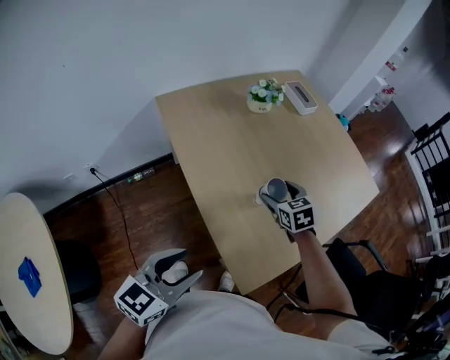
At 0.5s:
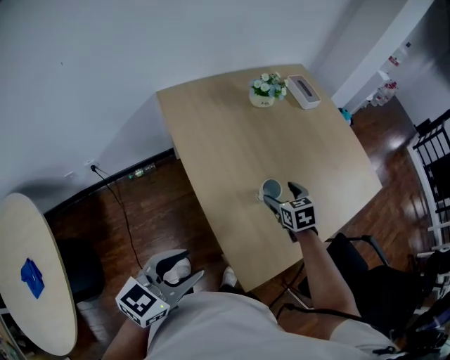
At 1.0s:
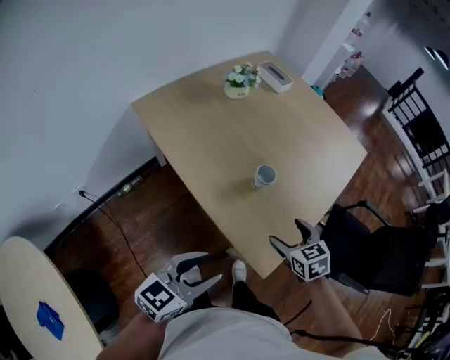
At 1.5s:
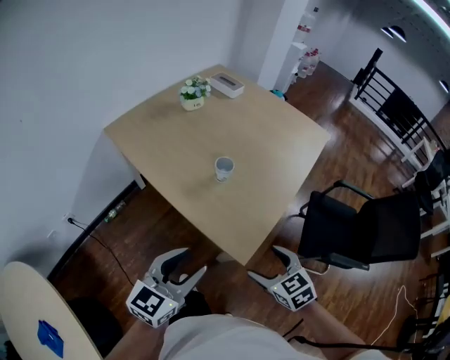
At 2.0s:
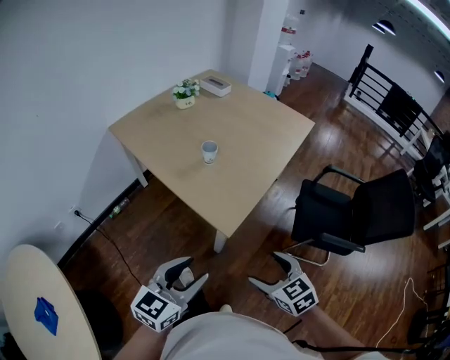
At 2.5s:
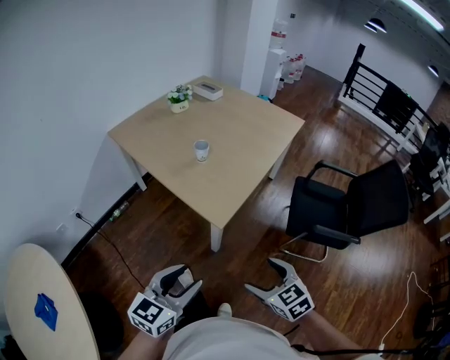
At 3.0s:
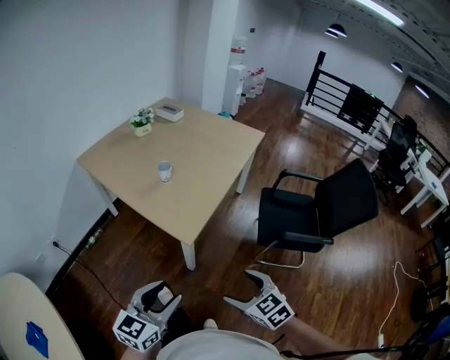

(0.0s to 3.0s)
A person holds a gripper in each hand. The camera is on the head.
0.0s - 1.5s: The left gripper shifts roughly 5 cm backward. The right gripper travels backward by about 35 cm.
1.5s - 3.0s: The grippers both shift backward and to the right by roughly 25 cm.

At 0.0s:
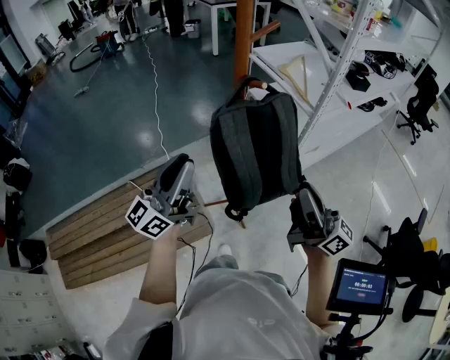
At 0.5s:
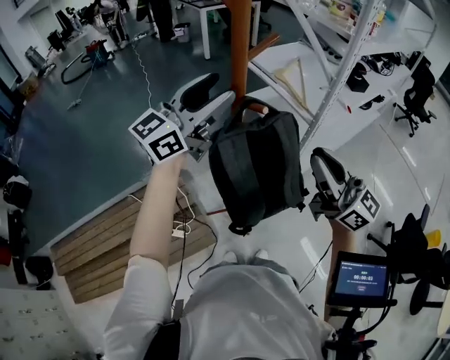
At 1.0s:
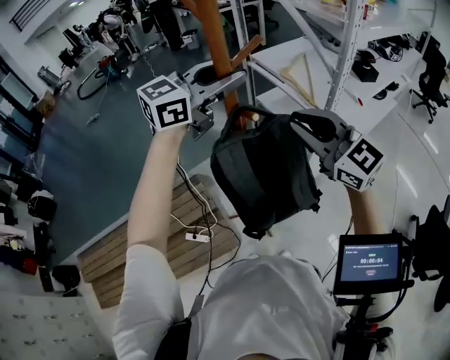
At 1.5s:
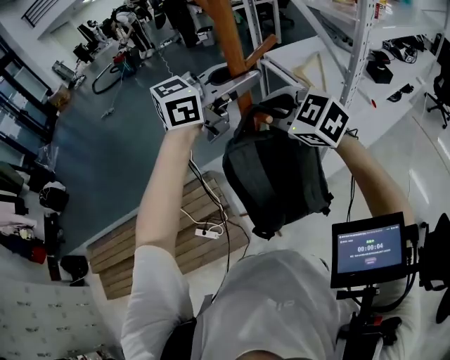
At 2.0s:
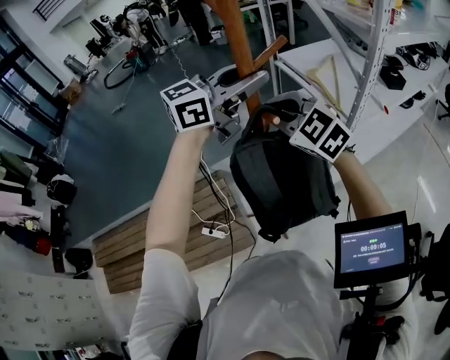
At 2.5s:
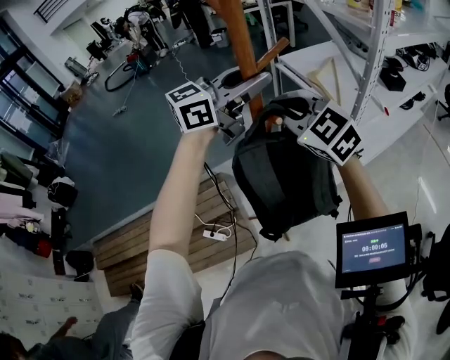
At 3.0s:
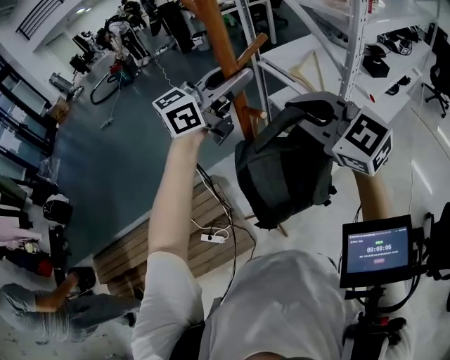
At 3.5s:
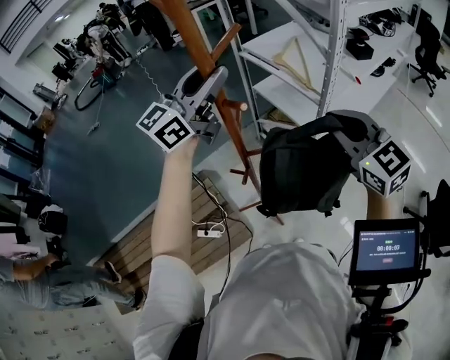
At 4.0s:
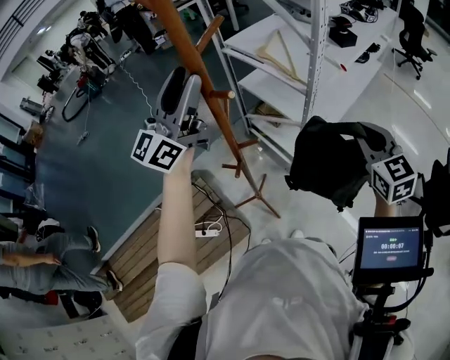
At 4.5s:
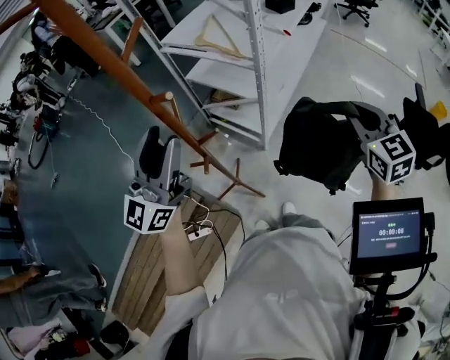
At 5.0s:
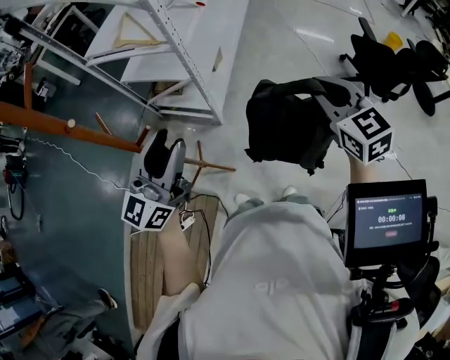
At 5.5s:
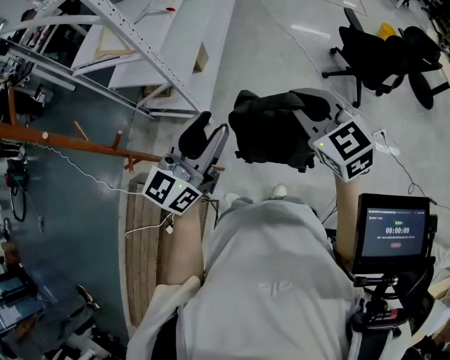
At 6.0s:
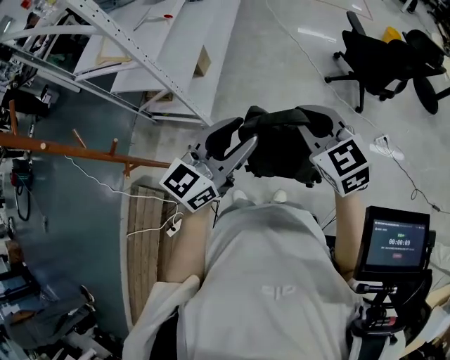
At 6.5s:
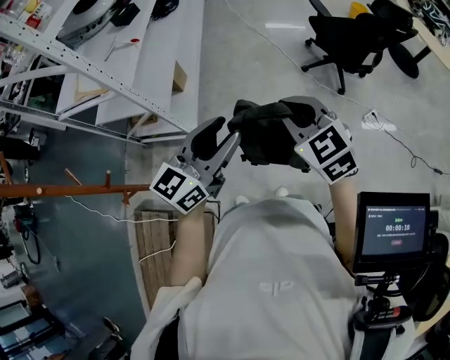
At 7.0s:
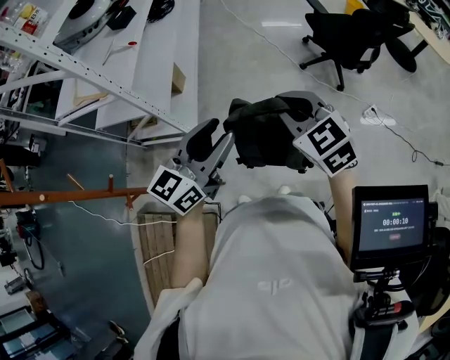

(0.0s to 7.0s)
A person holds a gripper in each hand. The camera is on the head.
0.0s - 2.0s: The left gripper travels forward, upward and to the right by about 30 cm, turns by some 30 degrees, and opens and closes again. The right gripper heads forward and to the left, covering approximately 30 cm, and tips its fingers downward by about 50 degrees.
2.0s - 3.5s: The right gripper heads to the right and backward, covering approximately 20 cm, and swivels approximately 30 degrees.
3.5s - 5.0s: The right gripper changes place by approximately 30 cm, and turns by approximately 50 degrees. The left gripper shifts by about 25 cm, and rotates about 20 degrees.
5.0s - 7.0s: The right gripper goes approximately 15 cm to the right, while the left gripper is displaced to the right by about 30 cm, and turns by about 30 degrees.

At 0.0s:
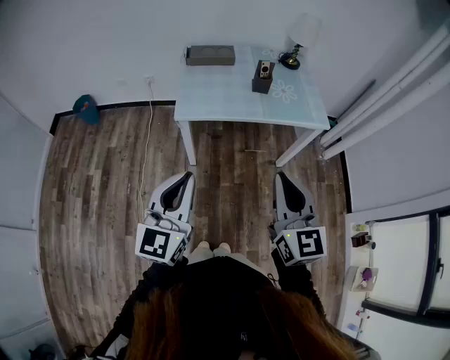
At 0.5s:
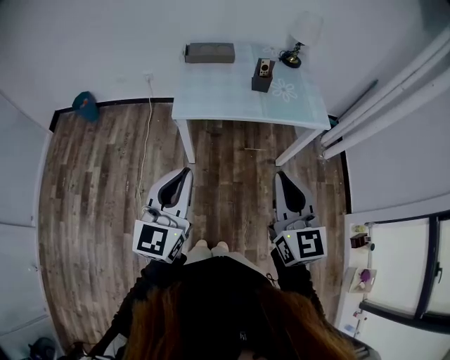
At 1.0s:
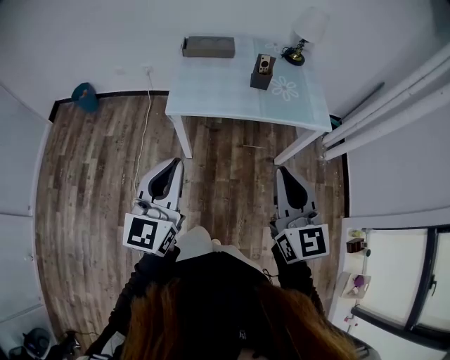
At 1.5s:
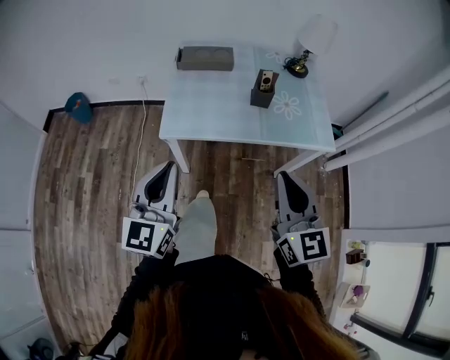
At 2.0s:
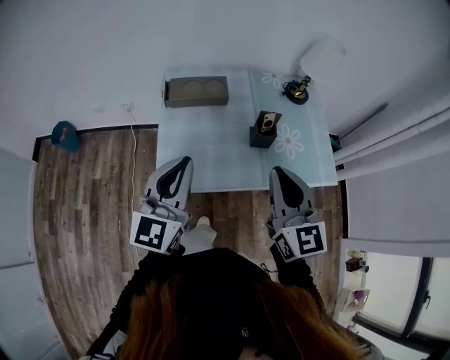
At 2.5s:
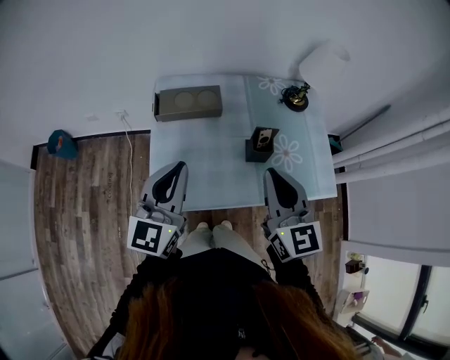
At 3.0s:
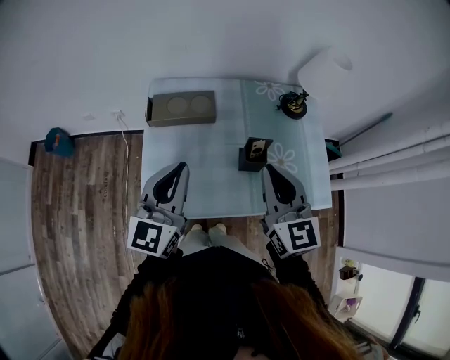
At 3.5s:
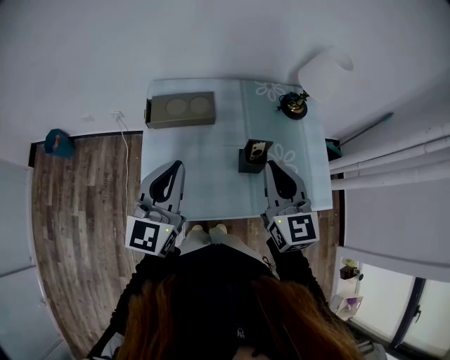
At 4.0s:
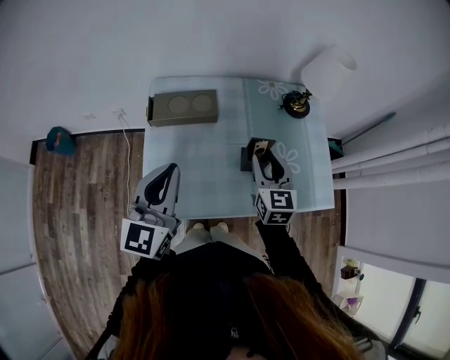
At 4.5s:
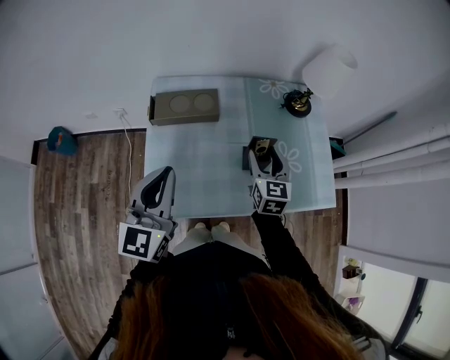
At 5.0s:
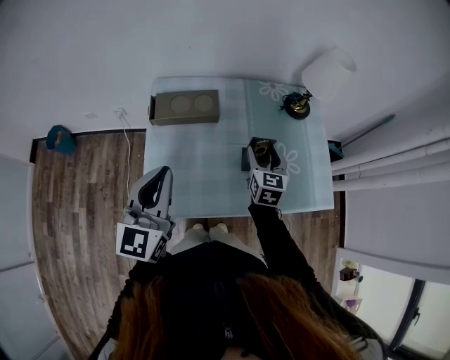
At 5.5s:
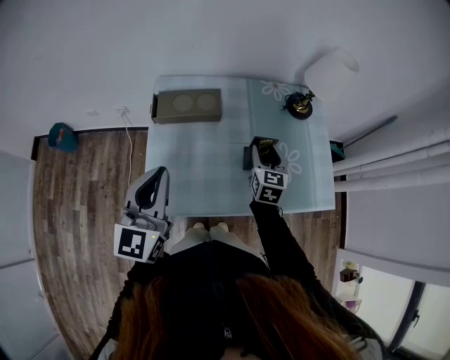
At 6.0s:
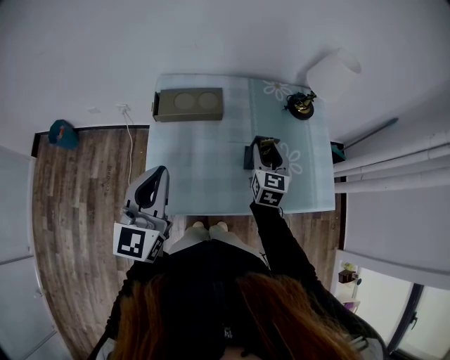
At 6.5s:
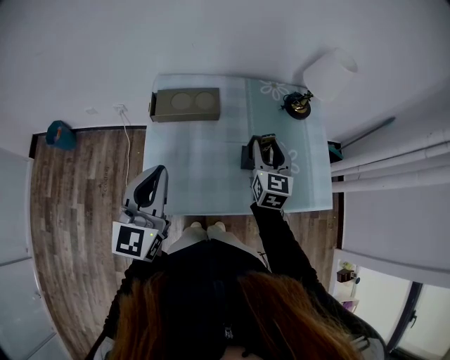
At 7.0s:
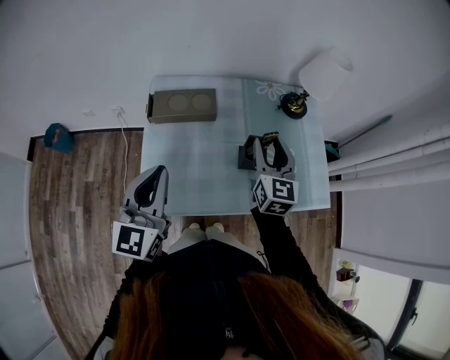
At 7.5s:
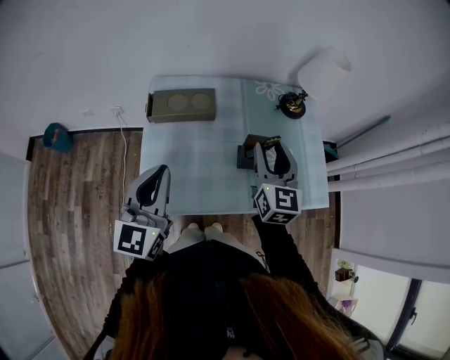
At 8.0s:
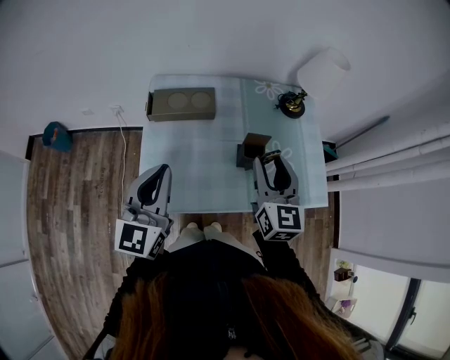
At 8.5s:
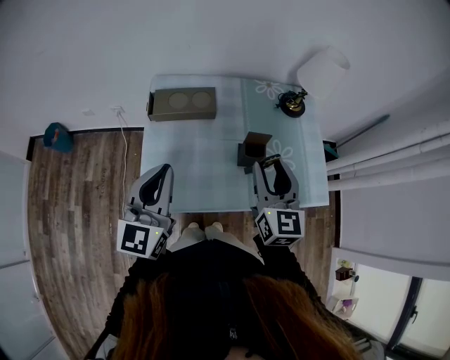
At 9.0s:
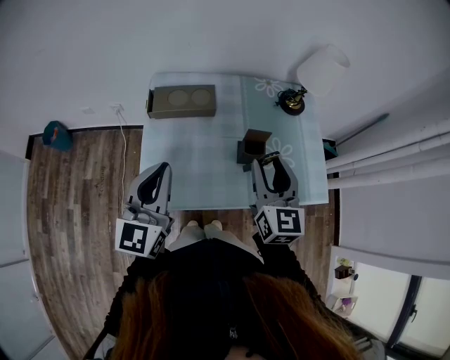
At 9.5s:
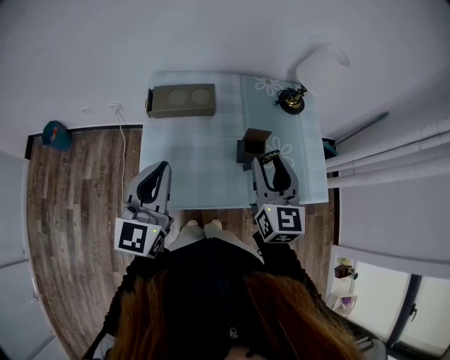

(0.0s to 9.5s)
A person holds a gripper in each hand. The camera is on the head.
0.0s - 2.0s: Both grippers move forward, some 35 cm.
2.0s - 4.0s: The right gripper shifts about 25 cm forward and downward, and opens its fingers; the left gripper goes roughly 10 cm forward.
4.0s - 5.5s: The right gripper goes some 5 cm downward.
5.5s - 7.5s: The right gripper heads upward, covering some 15 cm.
7.5s - 9.5s: The right gripper travels backward by about 5 cm.

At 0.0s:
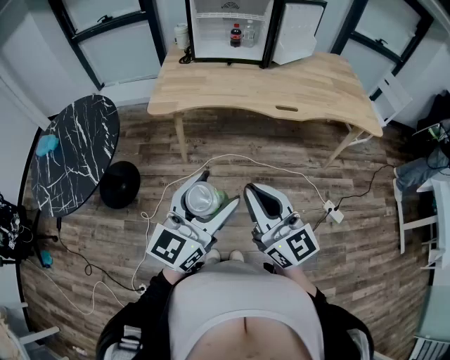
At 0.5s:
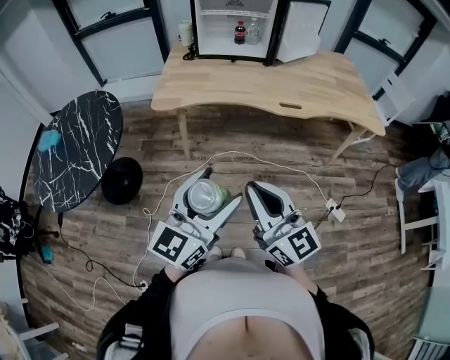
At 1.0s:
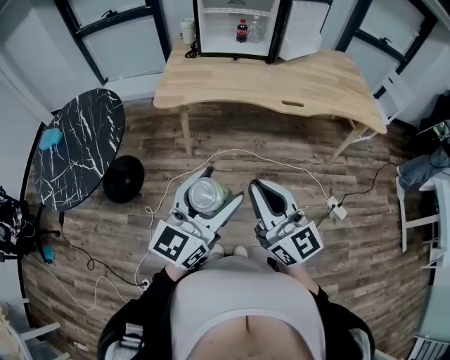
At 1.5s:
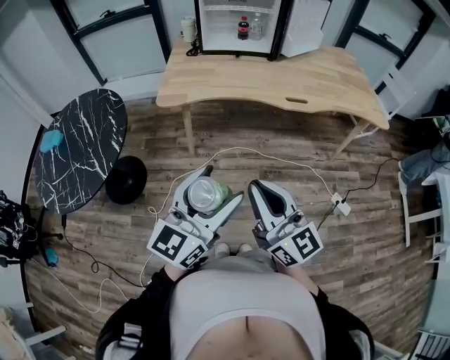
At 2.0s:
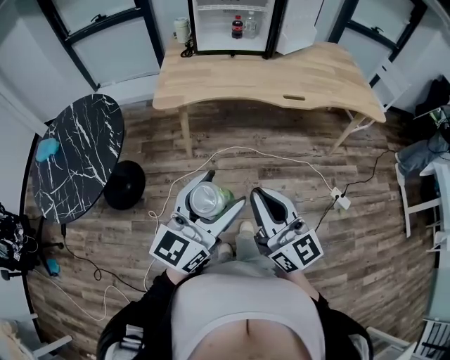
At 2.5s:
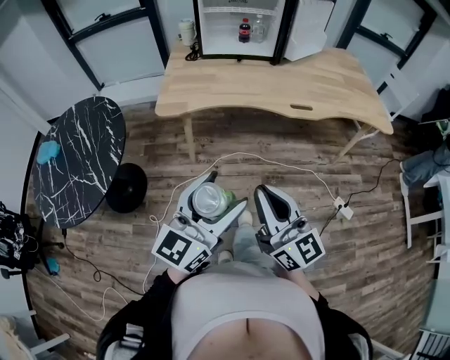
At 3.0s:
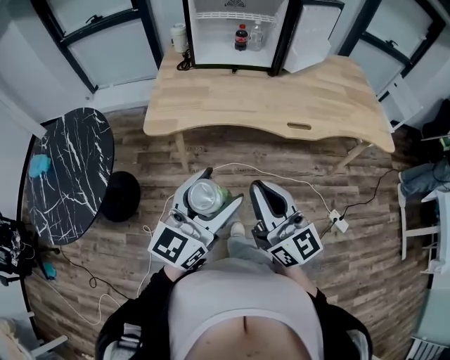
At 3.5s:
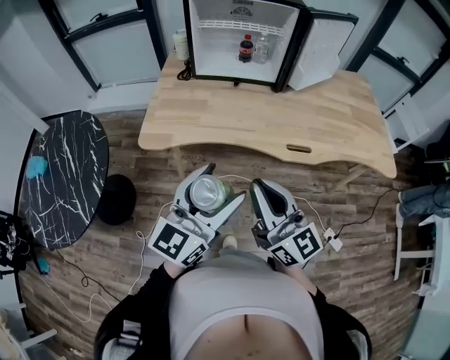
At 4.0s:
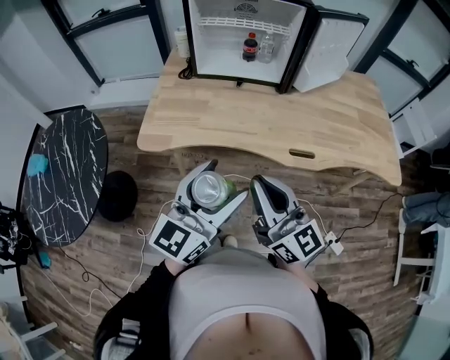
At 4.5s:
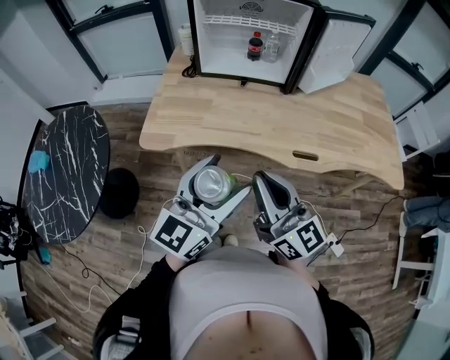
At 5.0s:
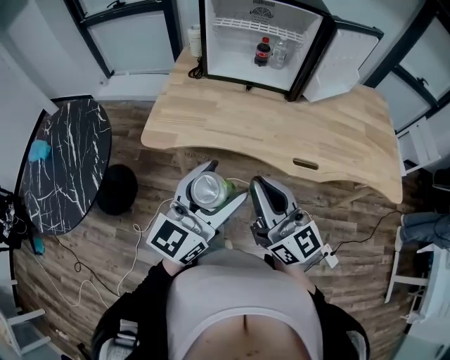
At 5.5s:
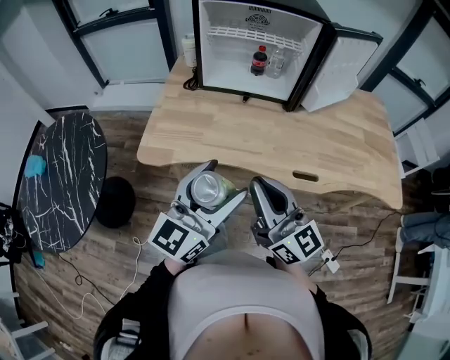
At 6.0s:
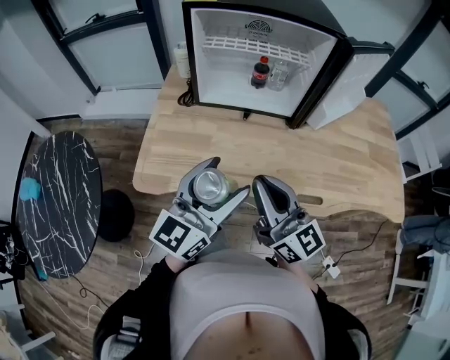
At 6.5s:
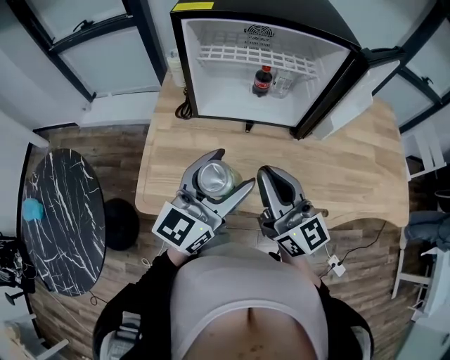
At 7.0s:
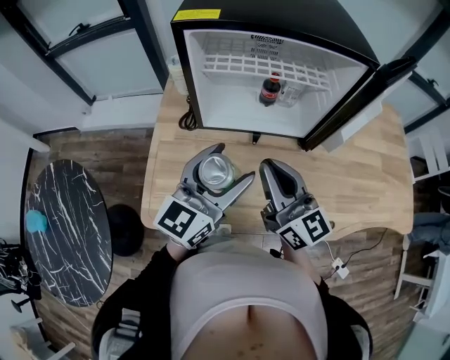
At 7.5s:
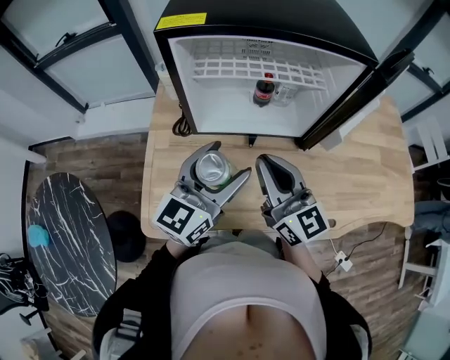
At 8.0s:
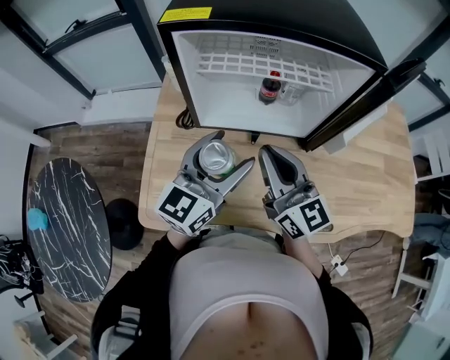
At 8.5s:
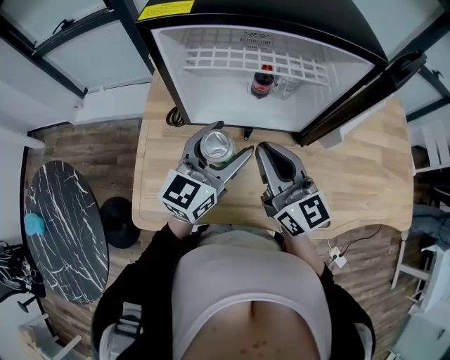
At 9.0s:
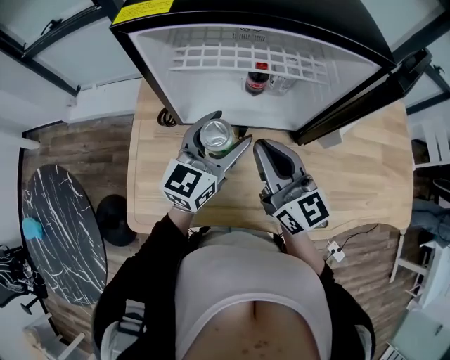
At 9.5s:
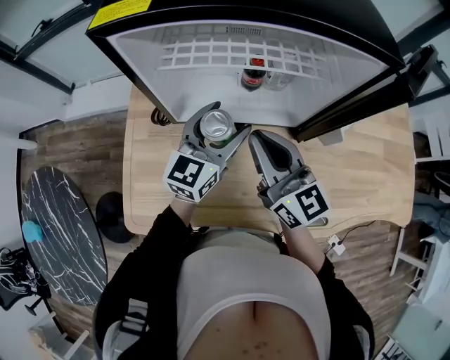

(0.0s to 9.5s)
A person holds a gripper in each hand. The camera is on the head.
0.0s - 2.0s: The left gripper is displaced to the left by approximately 5 cm. Meanwhile the right gripper shifts by some 5 cm.
2.0s - 4.0s: Both grippers travel together forward, approximately 30 cm.
4.0s - 5.5s: Both grippers move forward, approximately 5 cm.
5.5s - 7.5s: Both grippers move forward, roughly 30 cm.
7.5s - 9.5s: The left gripper moves forward and downward, roughly 15 cm. The right gripper travels forward by some 10 cm.
